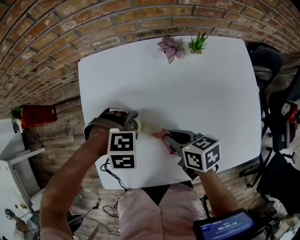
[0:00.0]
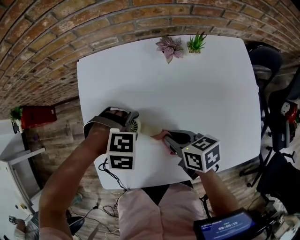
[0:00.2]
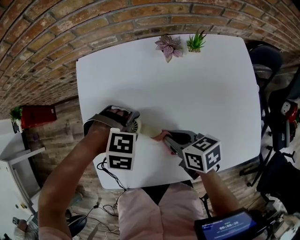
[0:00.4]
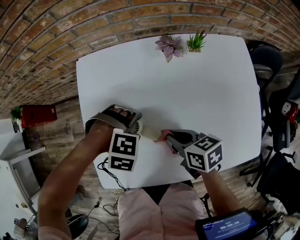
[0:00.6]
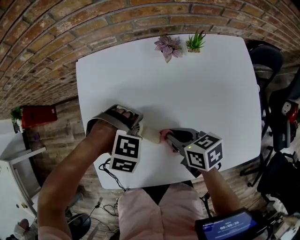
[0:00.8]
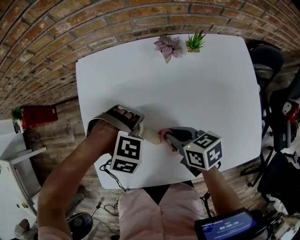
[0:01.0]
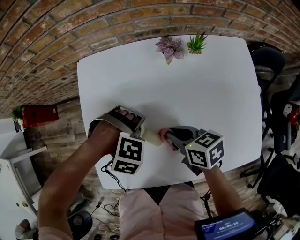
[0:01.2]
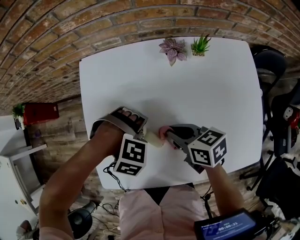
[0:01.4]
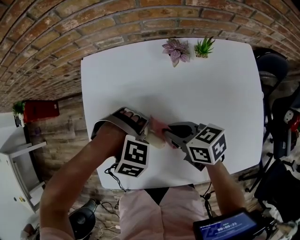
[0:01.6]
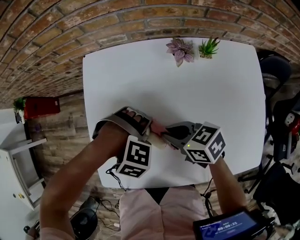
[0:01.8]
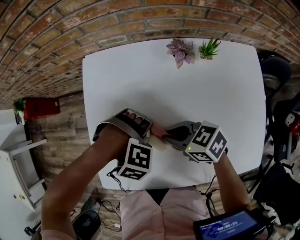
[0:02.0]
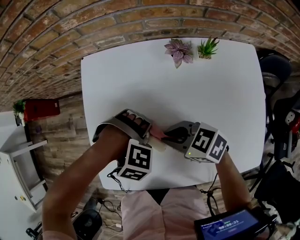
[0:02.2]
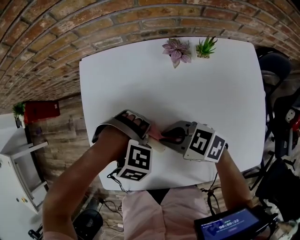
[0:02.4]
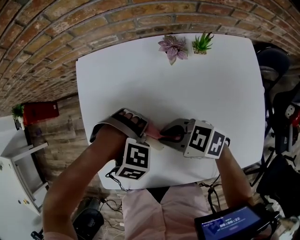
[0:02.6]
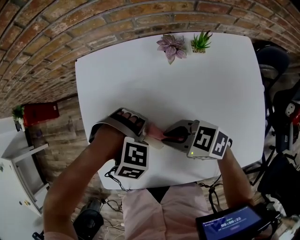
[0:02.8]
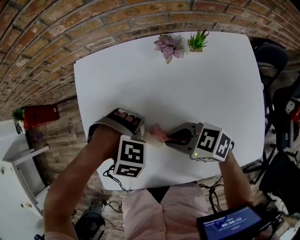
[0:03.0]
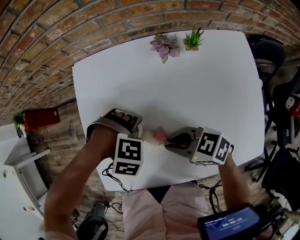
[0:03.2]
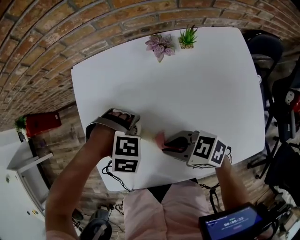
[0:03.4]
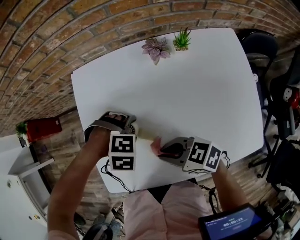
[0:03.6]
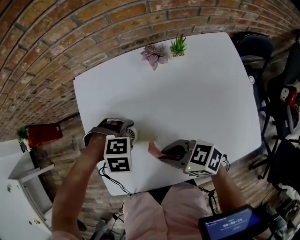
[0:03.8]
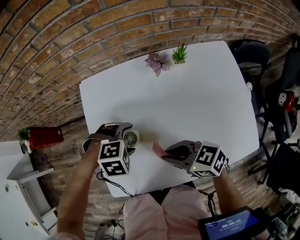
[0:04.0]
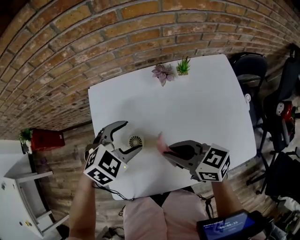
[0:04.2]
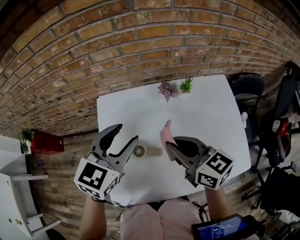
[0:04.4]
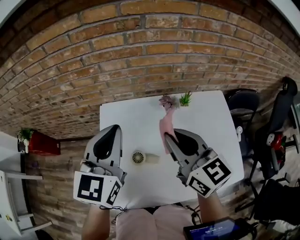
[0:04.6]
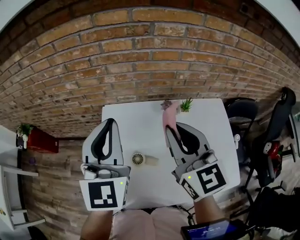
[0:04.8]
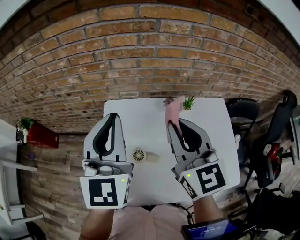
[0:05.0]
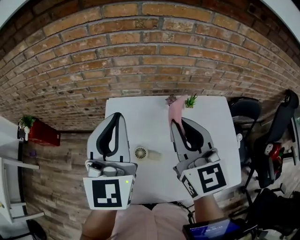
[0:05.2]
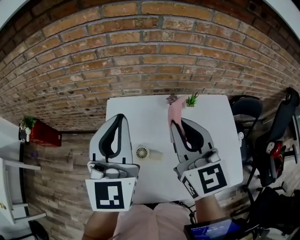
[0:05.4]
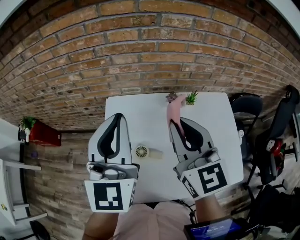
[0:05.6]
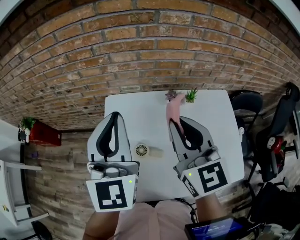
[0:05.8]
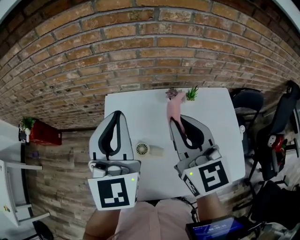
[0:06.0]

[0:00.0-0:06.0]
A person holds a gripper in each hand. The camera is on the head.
0:00.0 to 0:01.6: The left gripper rotates about 20 degrees.
0:01.6 to 0:03.0: The right gripper rotates some 30 degrees.
0:03.0 to 0:04.4: The grippers both shift upward by approximately 20 cm. The right gripper rotates roughly 50 degrees, while the left gripper tips its fingers upward by some 70 degrees.
0:04.4 to 0:06.0: The grippers both shift upward by roughly 10 cm. The left gripper swivels approximately 40 degrees, and closes its fingers, while the right gripper changes its angle by about 30 degrees.

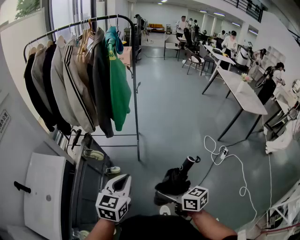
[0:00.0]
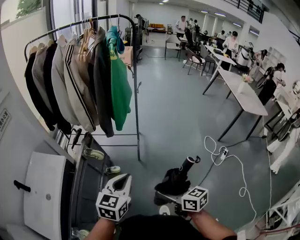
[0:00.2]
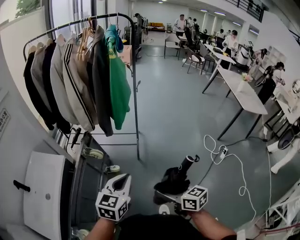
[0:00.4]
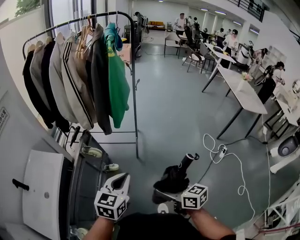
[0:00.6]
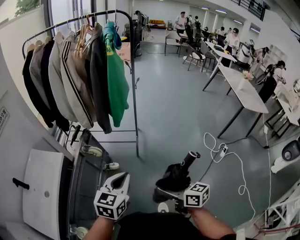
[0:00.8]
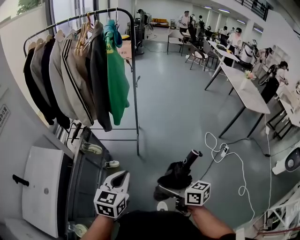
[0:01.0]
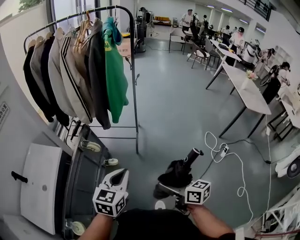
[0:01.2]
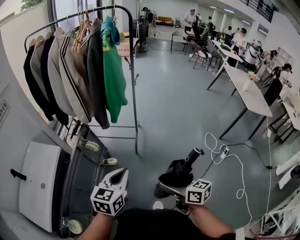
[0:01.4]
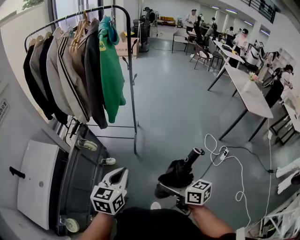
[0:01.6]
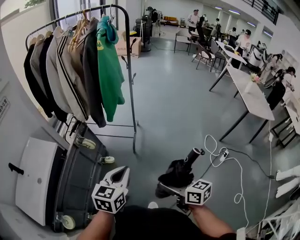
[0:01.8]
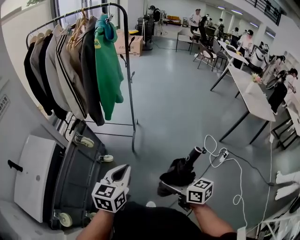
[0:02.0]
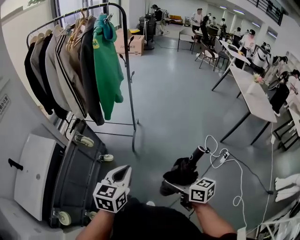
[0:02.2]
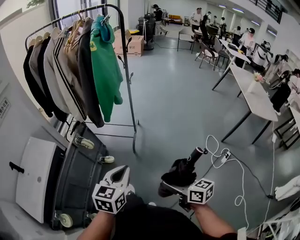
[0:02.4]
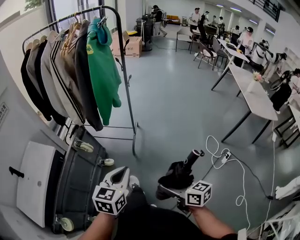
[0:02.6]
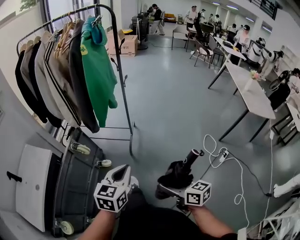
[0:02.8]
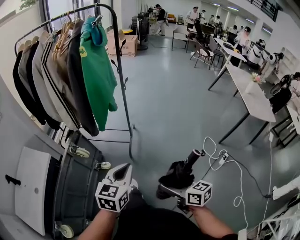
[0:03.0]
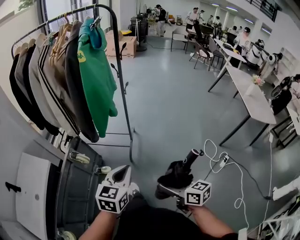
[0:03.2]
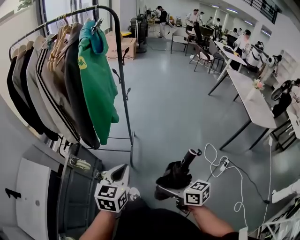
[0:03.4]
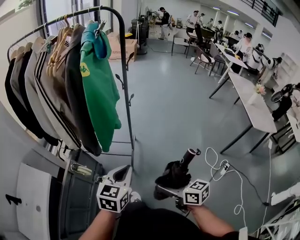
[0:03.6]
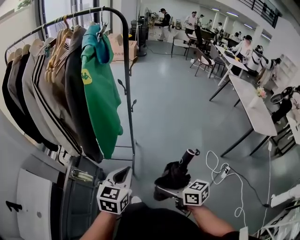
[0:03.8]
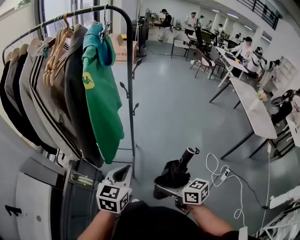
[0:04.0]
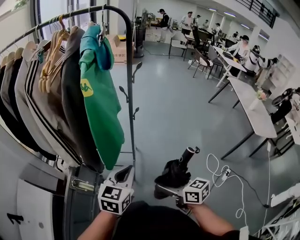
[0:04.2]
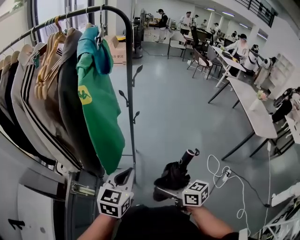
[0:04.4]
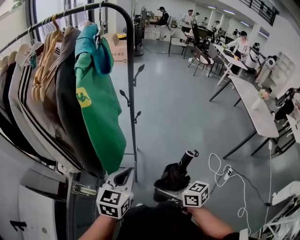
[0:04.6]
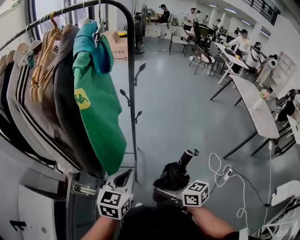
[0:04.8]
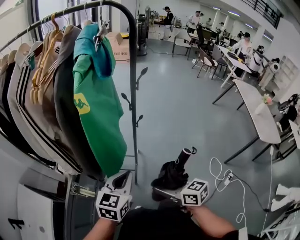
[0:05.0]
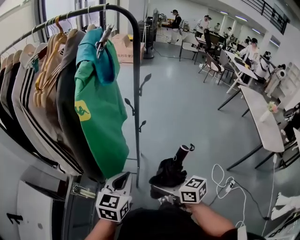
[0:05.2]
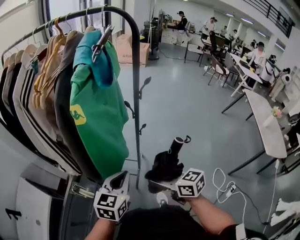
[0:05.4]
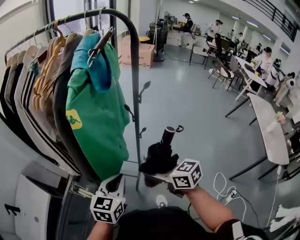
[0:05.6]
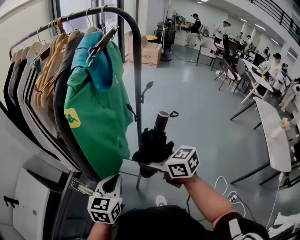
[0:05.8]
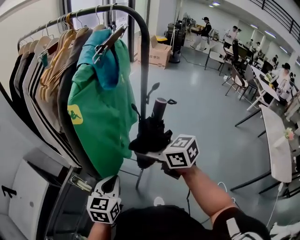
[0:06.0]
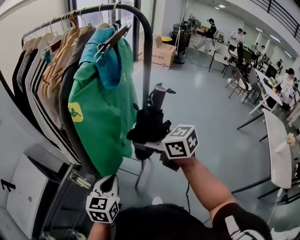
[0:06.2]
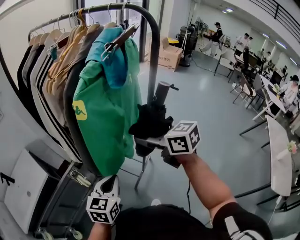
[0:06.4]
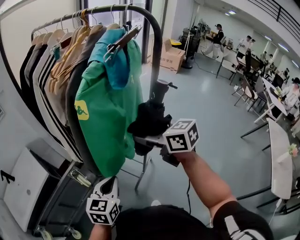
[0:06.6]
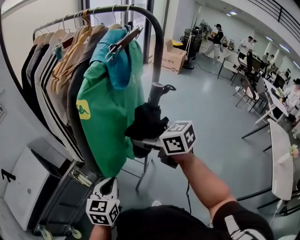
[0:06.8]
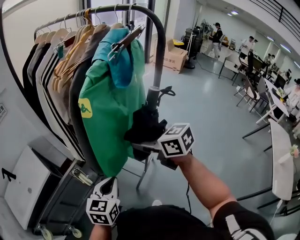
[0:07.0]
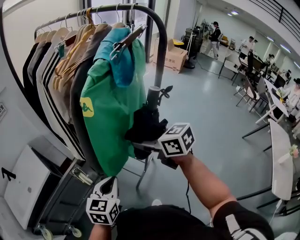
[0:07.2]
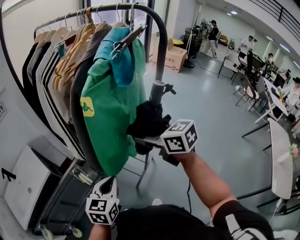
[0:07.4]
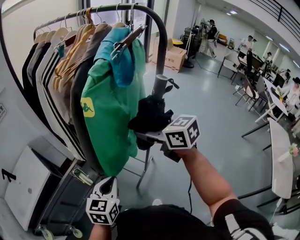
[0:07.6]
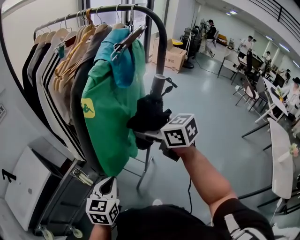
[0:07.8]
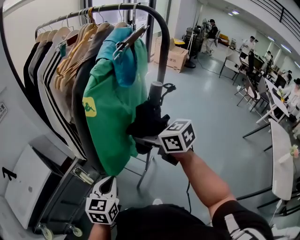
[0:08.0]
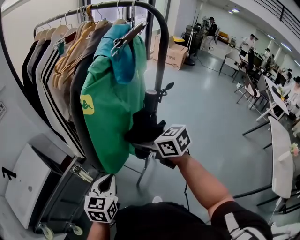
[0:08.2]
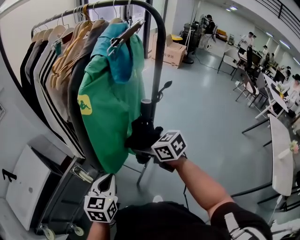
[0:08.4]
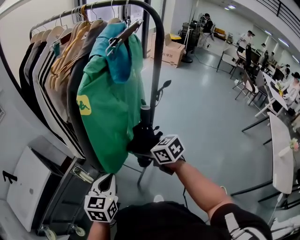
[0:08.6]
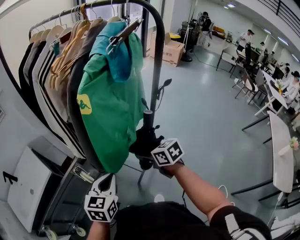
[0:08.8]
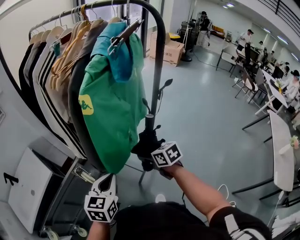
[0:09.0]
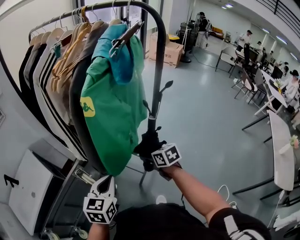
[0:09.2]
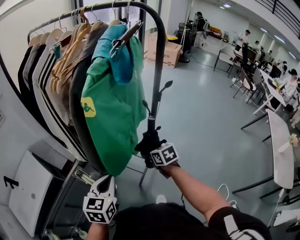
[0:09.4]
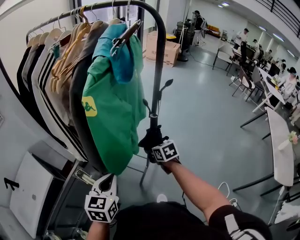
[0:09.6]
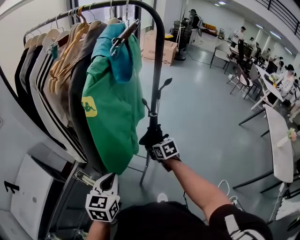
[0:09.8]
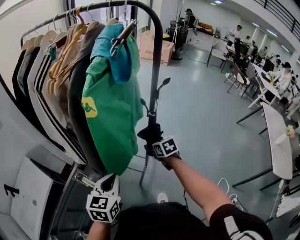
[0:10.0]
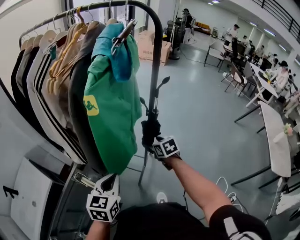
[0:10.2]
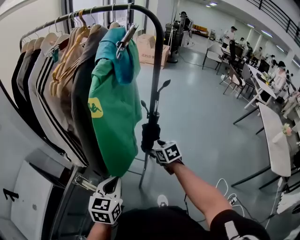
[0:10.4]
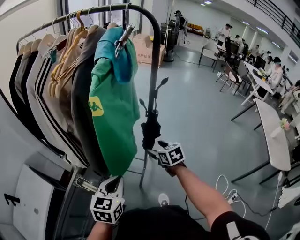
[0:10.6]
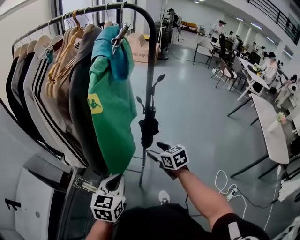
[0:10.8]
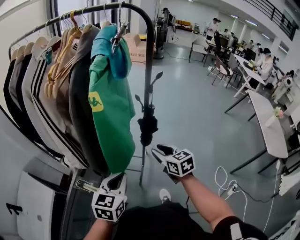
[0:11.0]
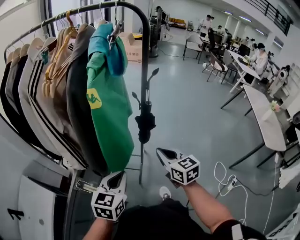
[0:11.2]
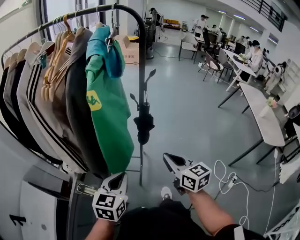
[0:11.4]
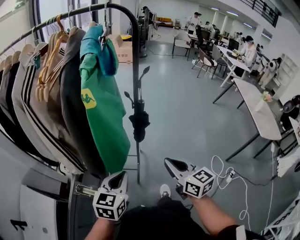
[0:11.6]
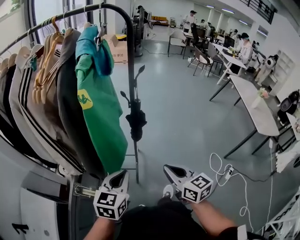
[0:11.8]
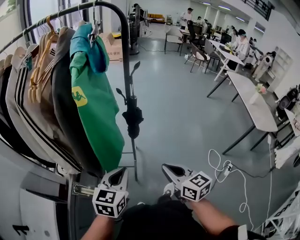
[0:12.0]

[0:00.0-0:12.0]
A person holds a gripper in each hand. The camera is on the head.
0:00.0 to 0:01.6: The grippers both shift to the right by approximately 10 cm.
0:01.6 to 0:03.0: The grippers both shift to the right and forward by some 15 cm.
0:03.0 to 0:04.4: The two grippers go about 30 cm forward.
0:04.4 to 0:06.0: The left gripper changes place by roughly 5 cm, and changes its angle by about 30 degrees. The right gripper ends up roughly 30 cm from where it was, and swivels some 30 degrees.
0:06.0 to 0:07.6: The right gripper travels forward and upward by some 10 cm.
0:07.6 to 0:09.0: The right gripper travels downward by roughly 20 cm, and rotates some 20 degrees.
0:09.0 to 0:10.4: The right gripper travels to the right by some 5 cm, and turns by roughly 20 degrees.
0:10.4 to 0:12.0: The left gripper turns by about 20 degrees. Meanwhile the right gripper moves backward and upward, some 25 cm, swivels roughly 30 degrees, and closes its fingers.

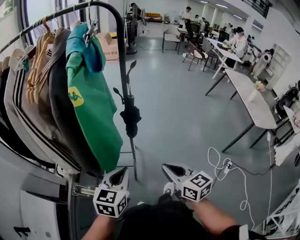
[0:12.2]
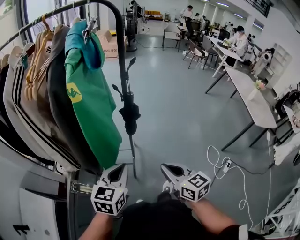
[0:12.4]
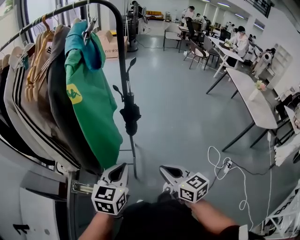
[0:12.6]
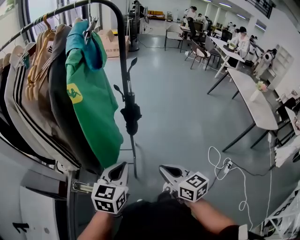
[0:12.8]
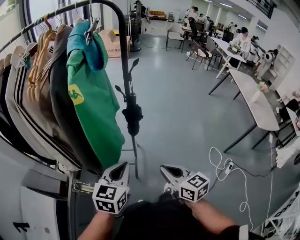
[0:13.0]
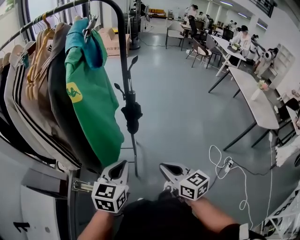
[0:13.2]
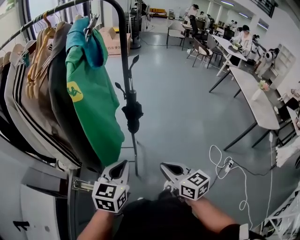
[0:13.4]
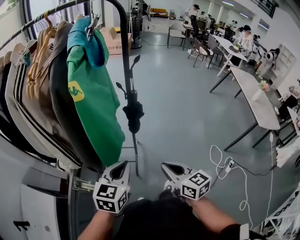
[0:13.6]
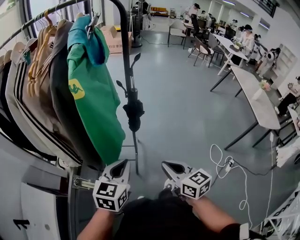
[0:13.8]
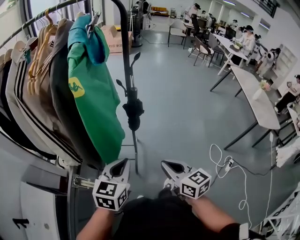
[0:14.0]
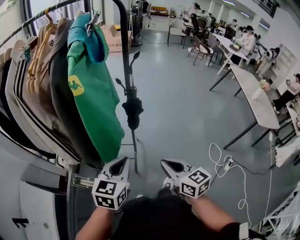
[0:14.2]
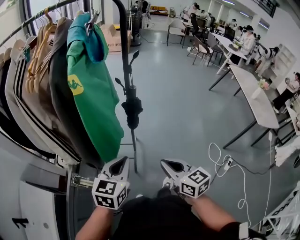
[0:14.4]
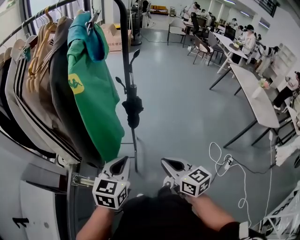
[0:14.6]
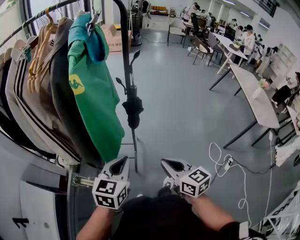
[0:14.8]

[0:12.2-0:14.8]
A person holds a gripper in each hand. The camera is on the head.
0:12.2 to 0:13.4: The grippers stay close to where they were, moving slightly.
0:13.4 to 0:14.8: The two grippers keep their place.

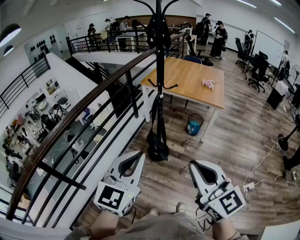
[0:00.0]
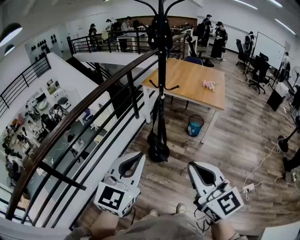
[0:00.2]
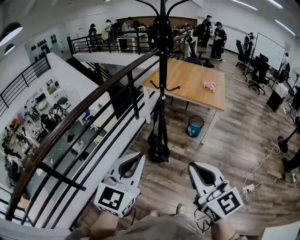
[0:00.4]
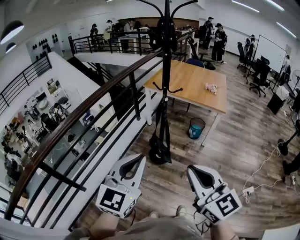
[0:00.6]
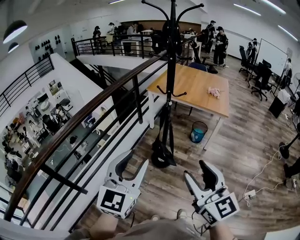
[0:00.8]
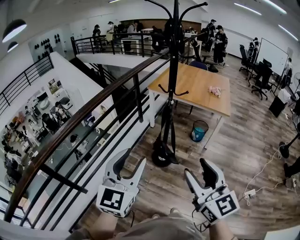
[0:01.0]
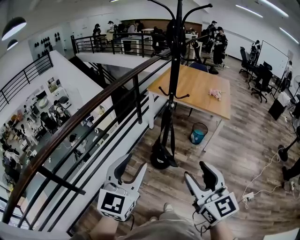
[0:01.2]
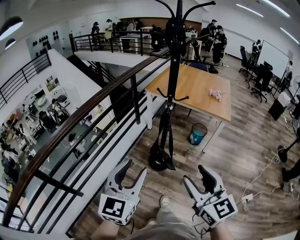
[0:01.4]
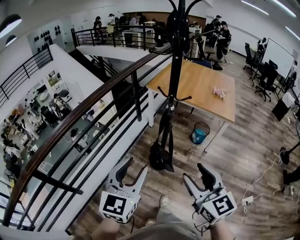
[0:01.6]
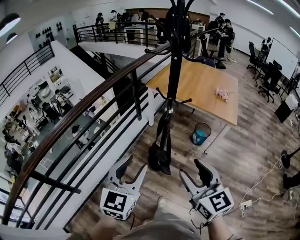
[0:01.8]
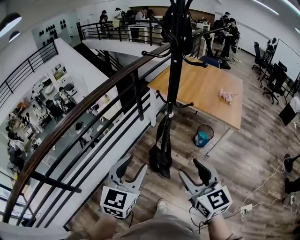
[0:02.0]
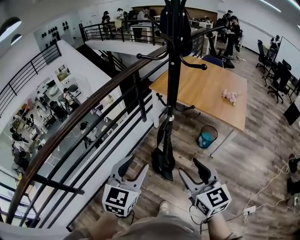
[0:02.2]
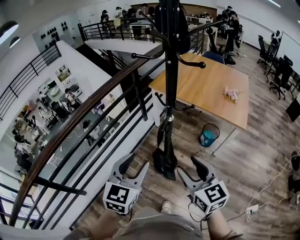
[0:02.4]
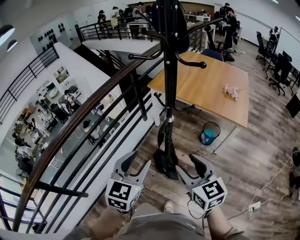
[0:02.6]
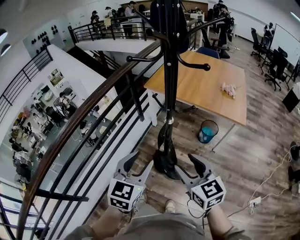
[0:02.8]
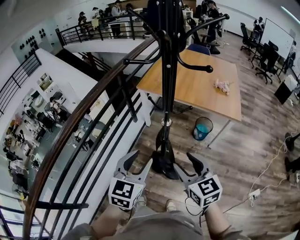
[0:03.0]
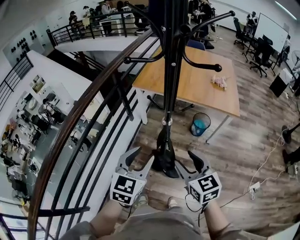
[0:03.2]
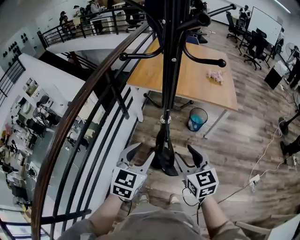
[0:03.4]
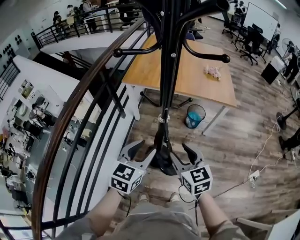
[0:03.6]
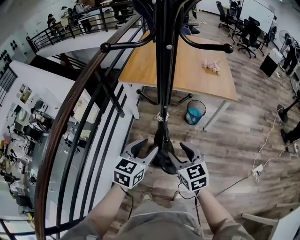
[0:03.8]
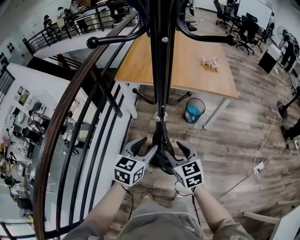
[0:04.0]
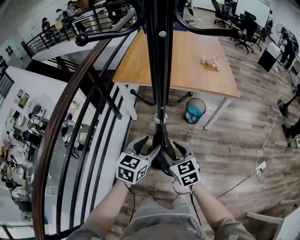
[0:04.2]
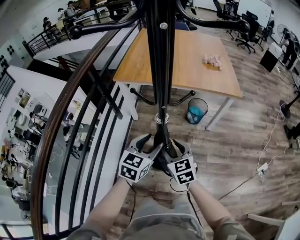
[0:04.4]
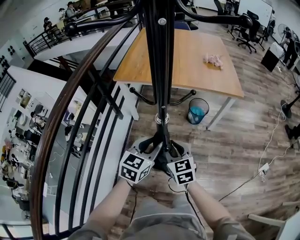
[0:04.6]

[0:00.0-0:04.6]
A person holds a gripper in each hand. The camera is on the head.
0:00.0 to 0:01.6: Both grippers move forward and downward, some 15 cm. The right gripper opens up; the left gripper opens up.
0:01.6 to 0:03.0: The right gripper heads forward and downward, covering roughly 20 cm. Meanwhile the left gripper goes approximately 20 cm forward.
0:03.0 to 0:04.6: Both grippers move downward and forward, some 25 cm. The left gripper swivels roughly 30 degrees. The right gripper closes up.
